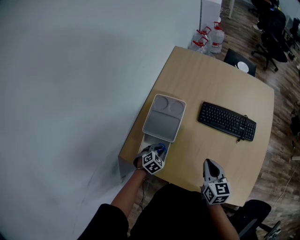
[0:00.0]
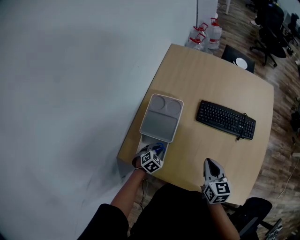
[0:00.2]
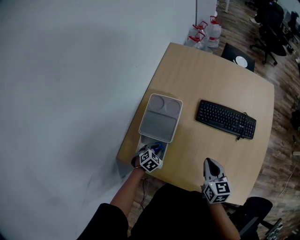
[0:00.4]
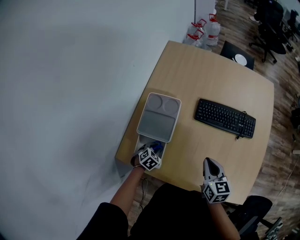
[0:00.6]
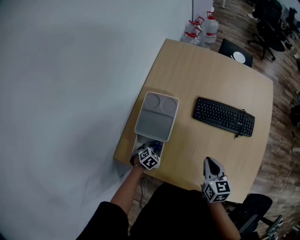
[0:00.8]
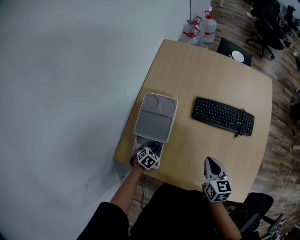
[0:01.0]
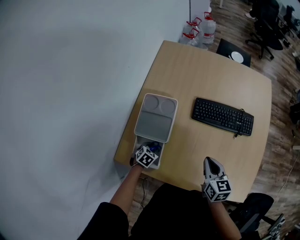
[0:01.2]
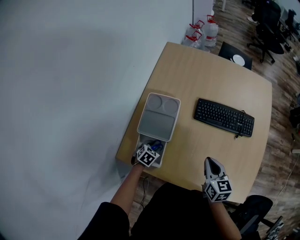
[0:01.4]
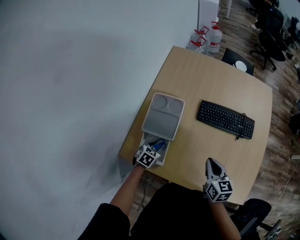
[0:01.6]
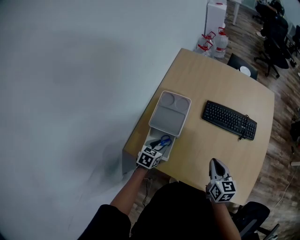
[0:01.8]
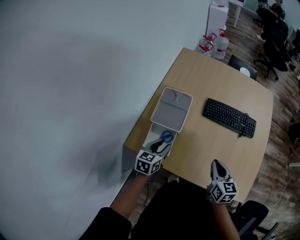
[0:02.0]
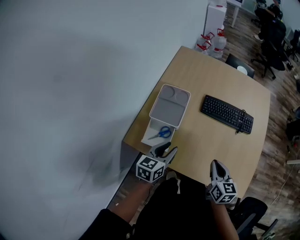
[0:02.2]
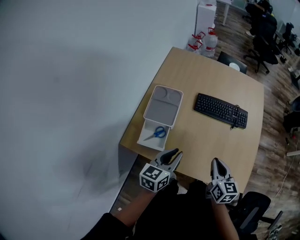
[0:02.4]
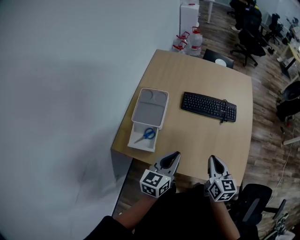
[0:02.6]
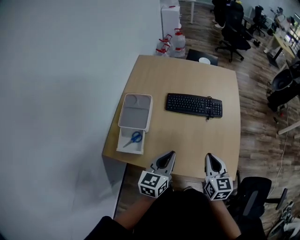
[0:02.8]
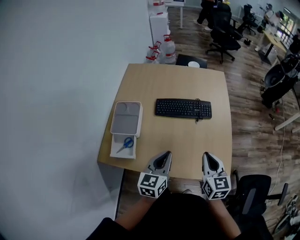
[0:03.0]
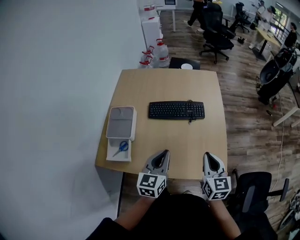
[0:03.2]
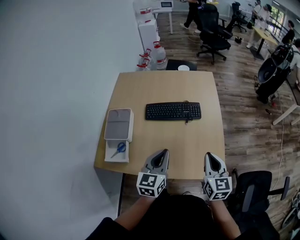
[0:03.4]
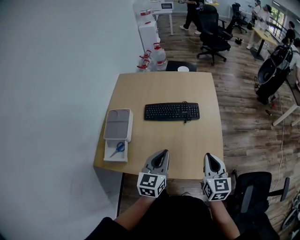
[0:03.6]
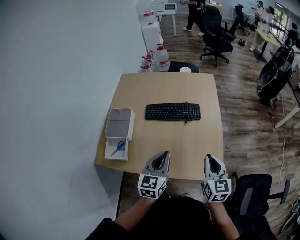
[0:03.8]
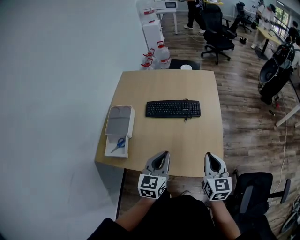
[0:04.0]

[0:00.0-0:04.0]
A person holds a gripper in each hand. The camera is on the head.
0:00.0 to 0:01.4: The grippers make only small movements.
0:01.4 to 0:02.6: The right gripper shifts some 15 cm backward, upward and to the right; the left gripper travels upward and to the right by some 35 cm, angles its fingers upward, by about 50 degrees, and closes up.
0:02.6 to 0:04.0: Both grippers move to the right, roughly 20 cm.

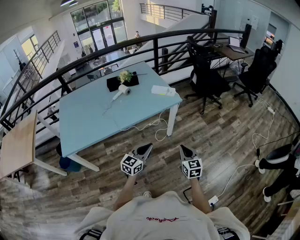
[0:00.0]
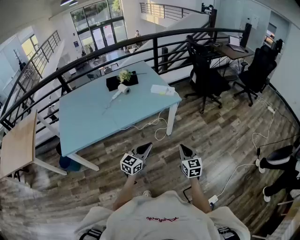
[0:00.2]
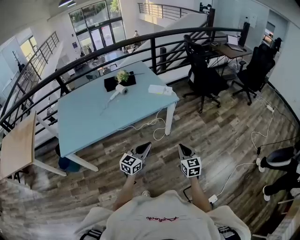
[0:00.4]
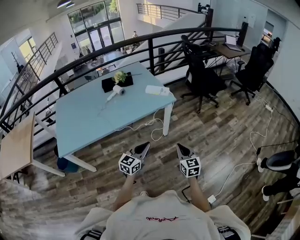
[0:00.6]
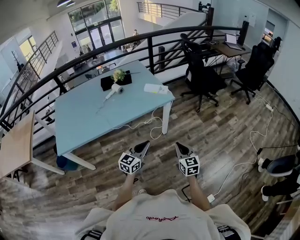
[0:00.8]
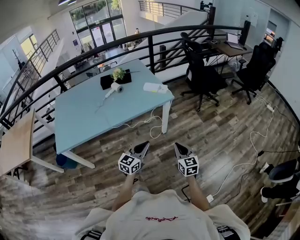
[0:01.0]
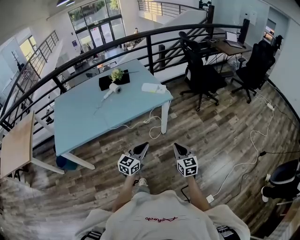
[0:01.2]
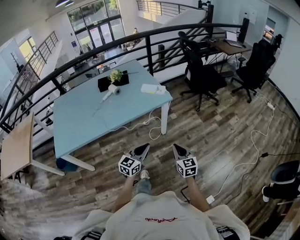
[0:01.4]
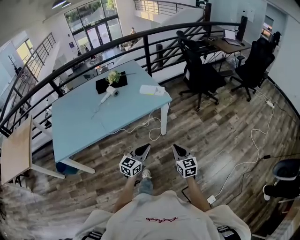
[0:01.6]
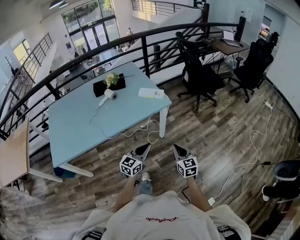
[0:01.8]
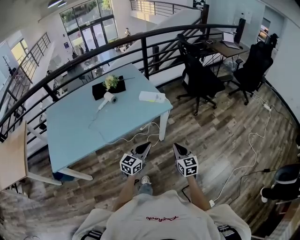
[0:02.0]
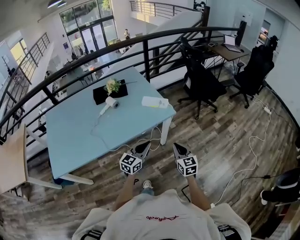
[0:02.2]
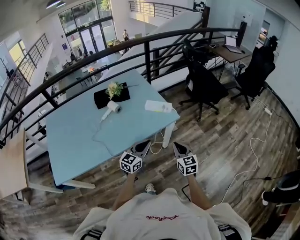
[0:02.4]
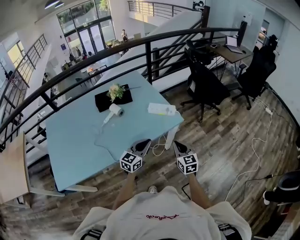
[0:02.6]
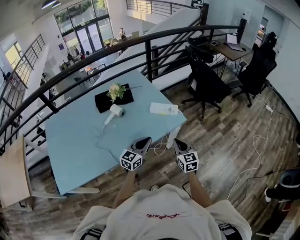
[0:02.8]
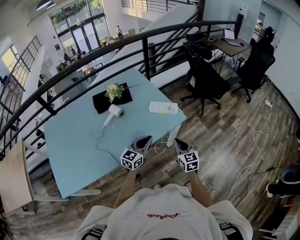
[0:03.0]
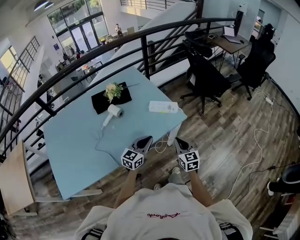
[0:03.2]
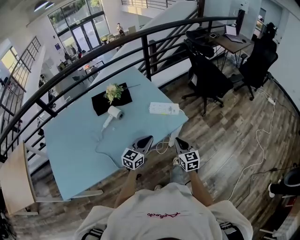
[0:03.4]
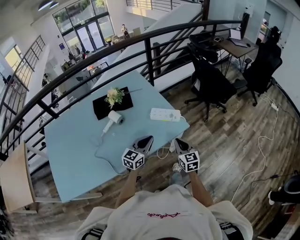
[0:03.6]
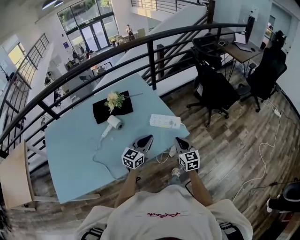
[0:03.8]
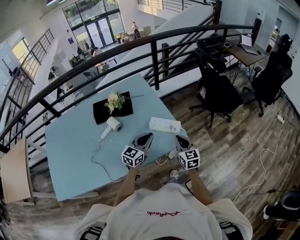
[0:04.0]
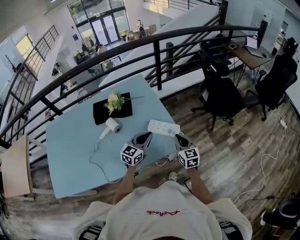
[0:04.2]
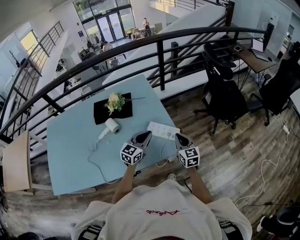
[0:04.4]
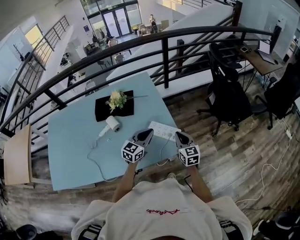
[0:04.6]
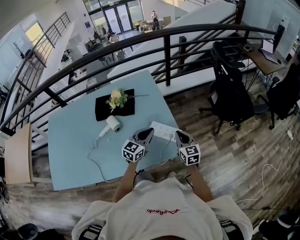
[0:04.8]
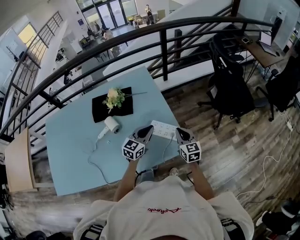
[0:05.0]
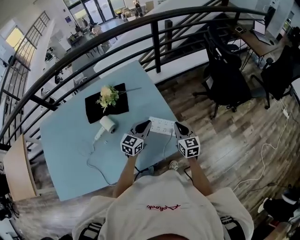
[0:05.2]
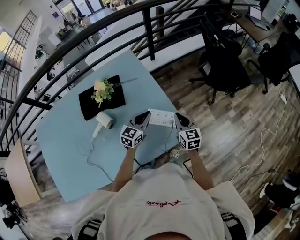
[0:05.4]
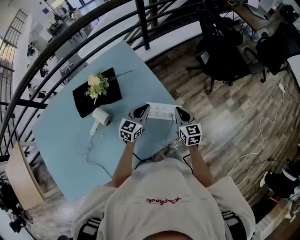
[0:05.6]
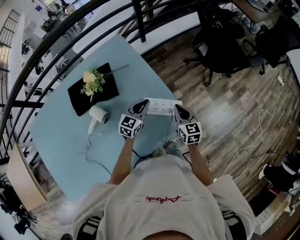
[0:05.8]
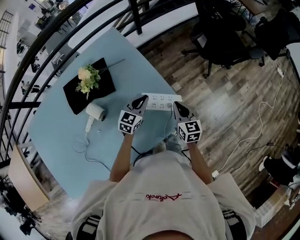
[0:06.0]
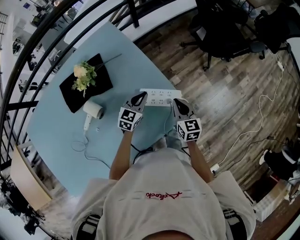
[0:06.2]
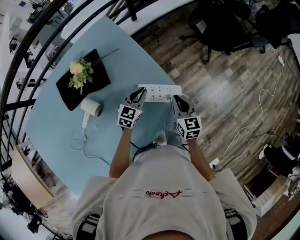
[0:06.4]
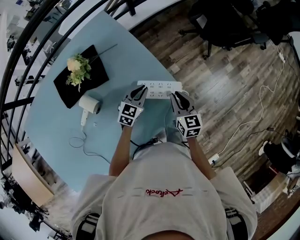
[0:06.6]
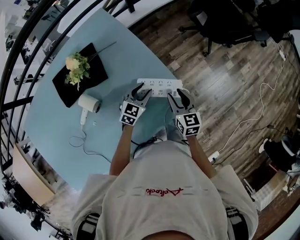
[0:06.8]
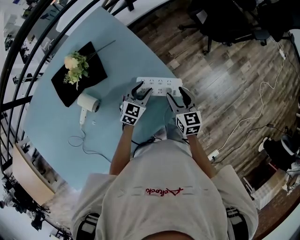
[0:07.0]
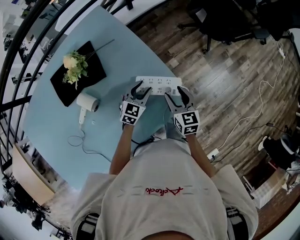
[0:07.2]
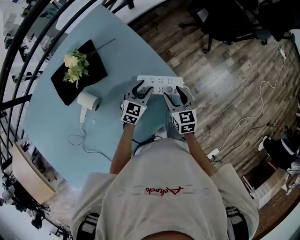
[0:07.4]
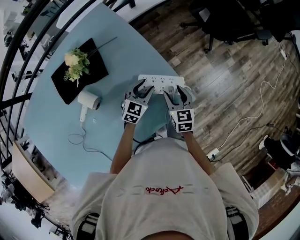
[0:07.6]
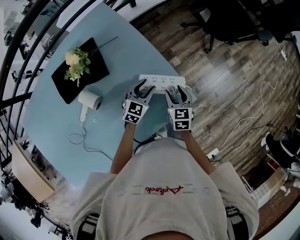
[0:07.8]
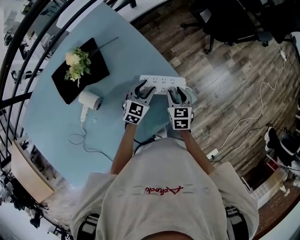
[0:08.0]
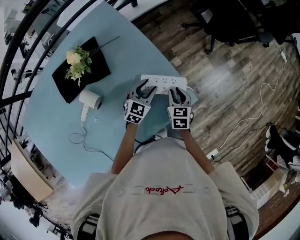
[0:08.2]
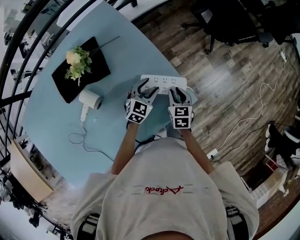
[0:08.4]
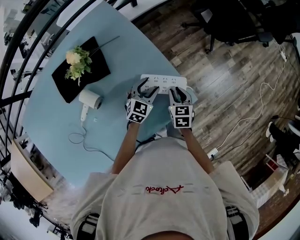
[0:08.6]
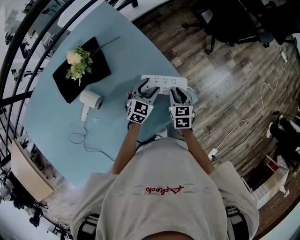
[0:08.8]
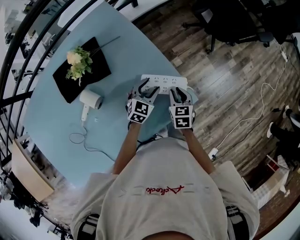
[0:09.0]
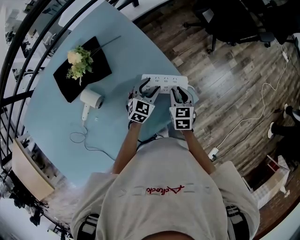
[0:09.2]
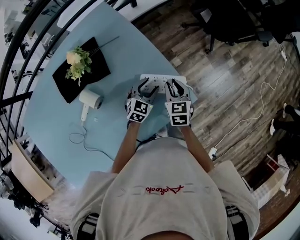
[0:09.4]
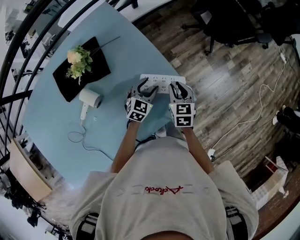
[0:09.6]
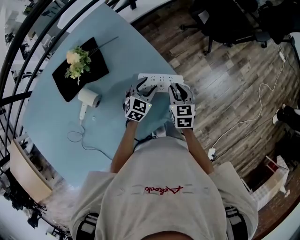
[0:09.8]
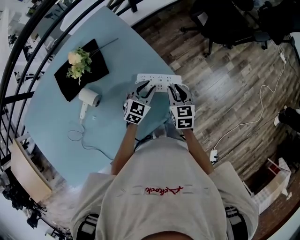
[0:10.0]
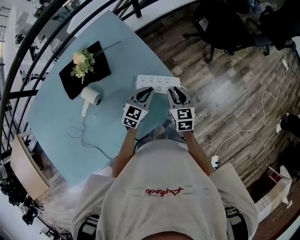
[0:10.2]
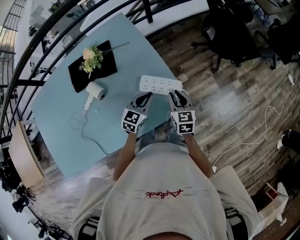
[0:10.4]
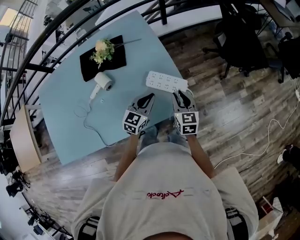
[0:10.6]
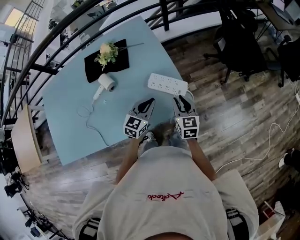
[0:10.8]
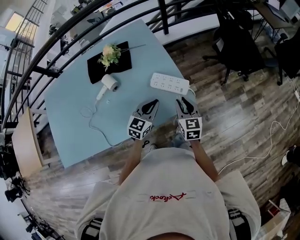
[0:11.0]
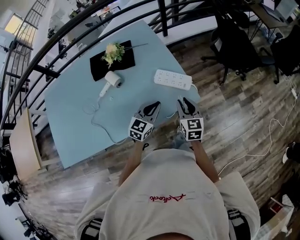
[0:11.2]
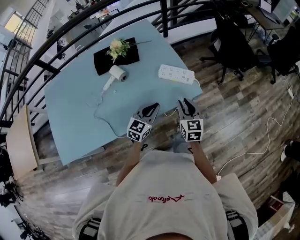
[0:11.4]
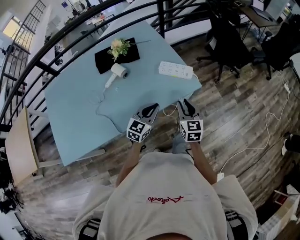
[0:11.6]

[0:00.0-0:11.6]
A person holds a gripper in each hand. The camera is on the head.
0:00.0 to 0:01.4: Both grippers travel together to the right, approximately 5 cm.
0:01.4 to 0:02.8: Both grippers travel together forward and to the left, roughly 30 cm.
0:02.8 to 0:04.4: Both grippers travel together forward, approximately 25 cm.
0:04.4 to 0:05.8: Both grippers move forward and downward, some 15 cm.
0:05.8 to 0:07.2: The right gripper opens up, while the left gripper travels downward by about 10 cm, and opens its fingers.
0:07.2 to 0:08.8: The right gripper travels downward by some 5 cm, and closes up.
0:08.8 to 0:10.2: Both grippers move upward, about 5 cm. The left gripper closes up.
0:10.2 to 0:11.6: The grippers both shift backward by about 25 cm.

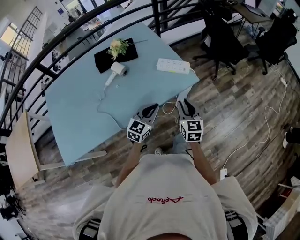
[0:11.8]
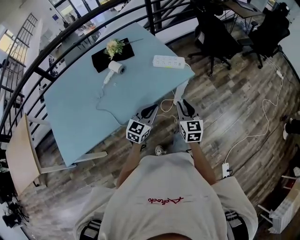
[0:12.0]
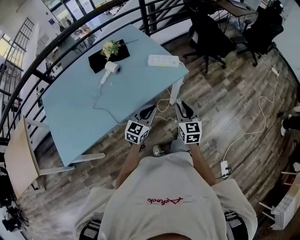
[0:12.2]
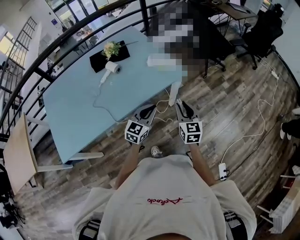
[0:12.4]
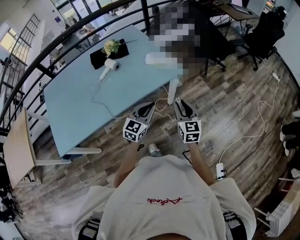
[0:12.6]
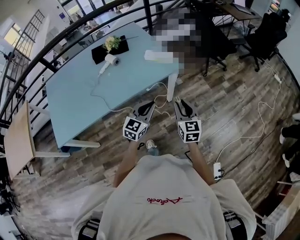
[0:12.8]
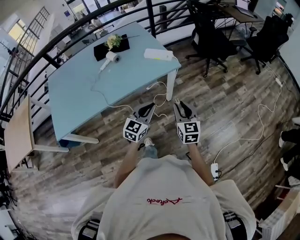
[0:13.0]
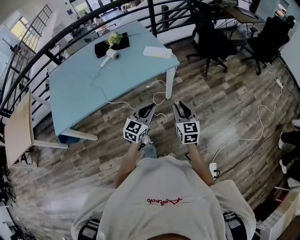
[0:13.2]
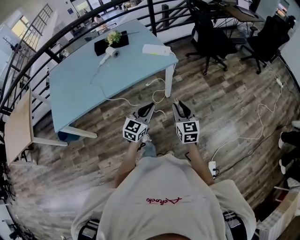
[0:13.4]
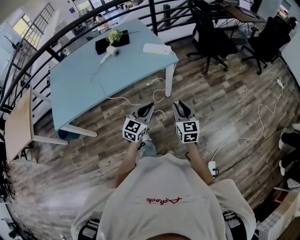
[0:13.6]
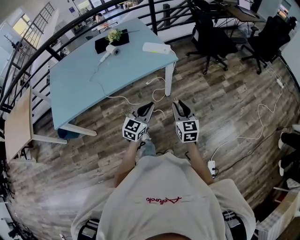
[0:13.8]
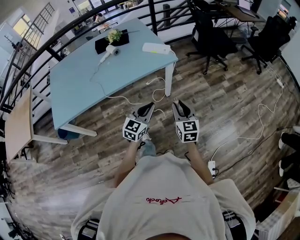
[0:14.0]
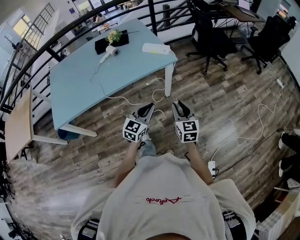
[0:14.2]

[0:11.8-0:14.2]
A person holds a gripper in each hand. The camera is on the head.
0:11.8 to 0:13.0: The grippers both shift backward and to the right by approximately 20 cm.
0:13.0 to 0:14.2: The grippers both shift backward by roughly 5 cm.

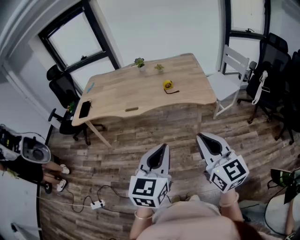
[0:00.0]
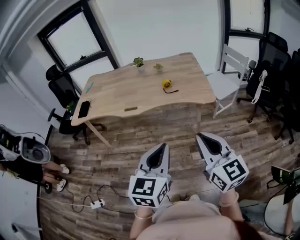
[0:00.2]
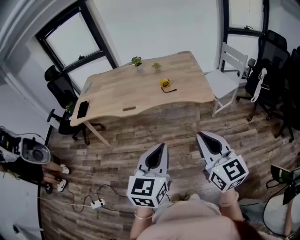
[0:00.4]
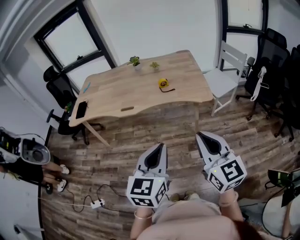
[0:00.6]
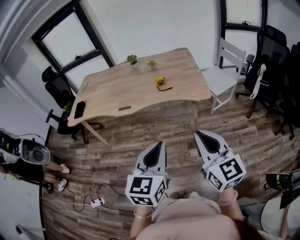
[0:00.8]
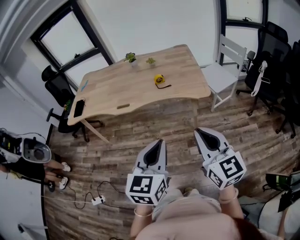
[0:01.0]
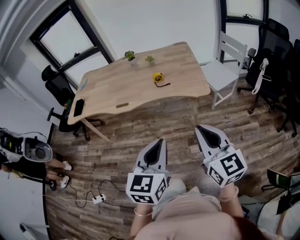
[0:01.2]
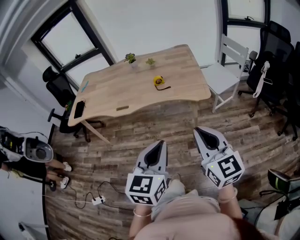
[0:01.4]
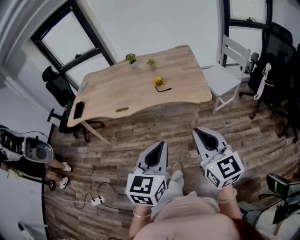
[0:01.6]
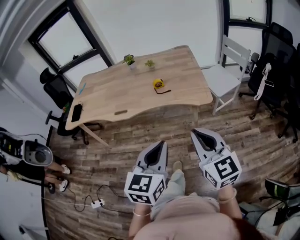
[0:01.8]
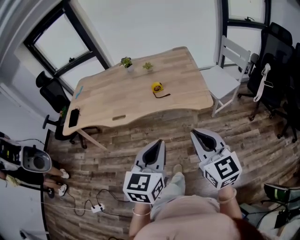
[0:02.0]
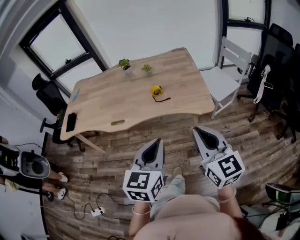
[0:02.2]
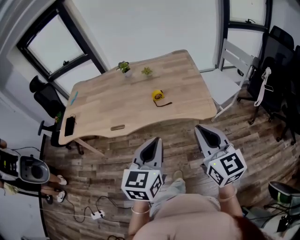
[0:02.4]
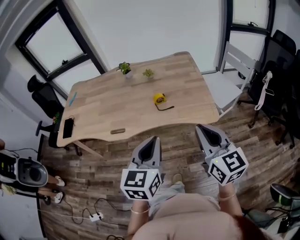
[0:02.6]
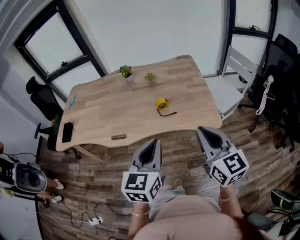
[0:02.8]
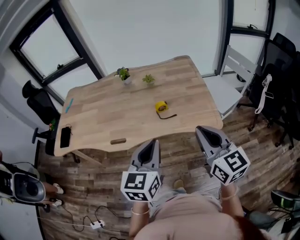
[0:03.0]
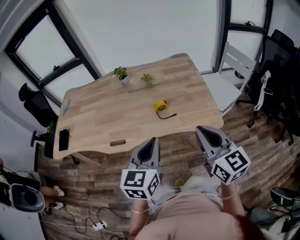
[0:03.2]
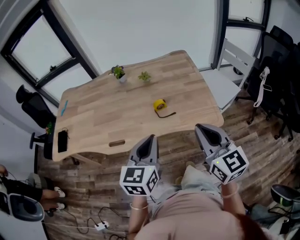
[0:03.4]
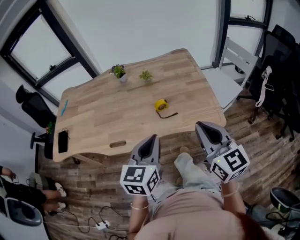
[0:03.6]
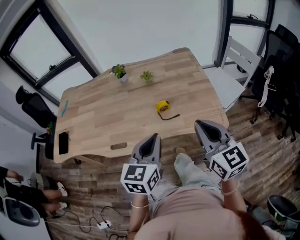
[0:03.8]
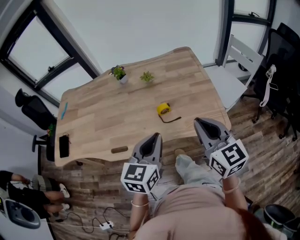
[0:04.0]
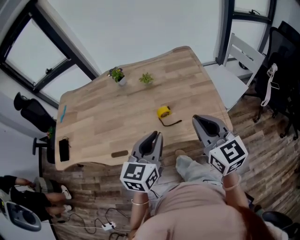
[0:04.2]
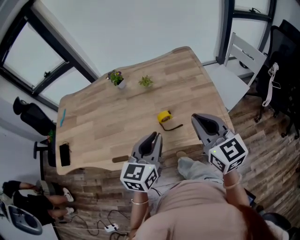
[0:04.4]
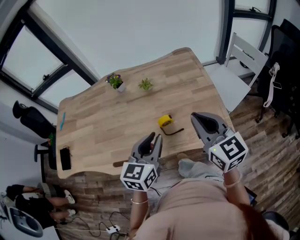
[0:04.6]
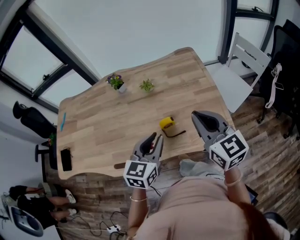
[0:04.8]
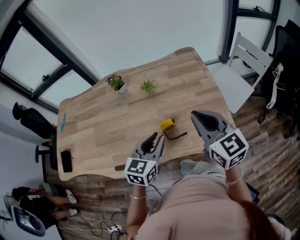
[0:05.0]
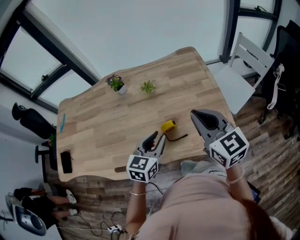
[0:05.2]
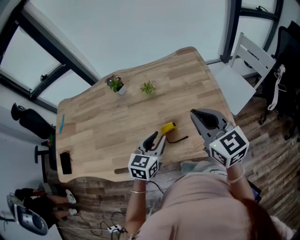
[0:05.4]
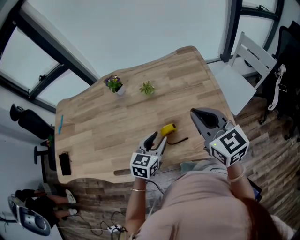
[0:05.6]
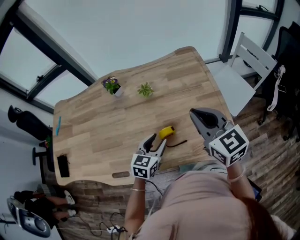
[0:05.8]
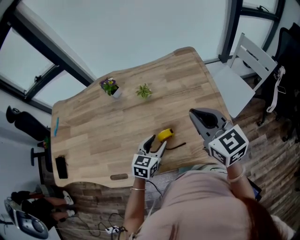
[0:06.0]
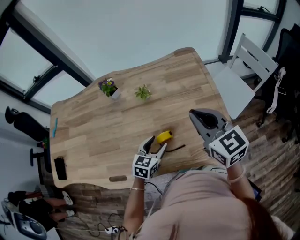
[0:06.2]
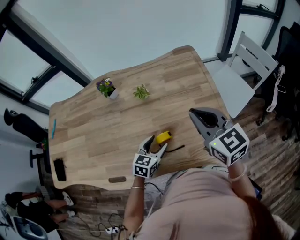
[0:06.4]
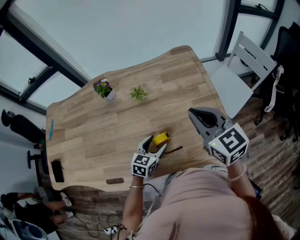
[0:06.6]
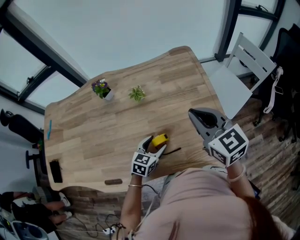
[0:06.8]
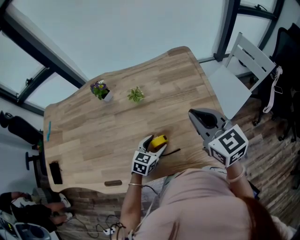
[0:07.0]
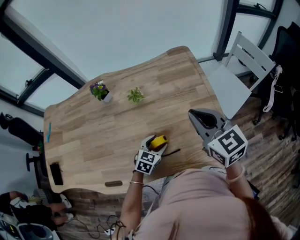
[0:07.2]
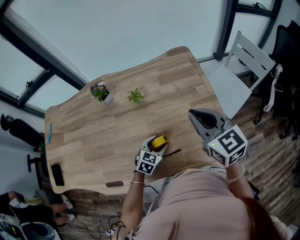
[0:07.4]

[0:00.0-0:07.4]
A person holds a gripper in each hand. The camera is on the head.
0:00.0 to 0:01.4: The left gripper travels to the right by roughly 10 cm; the right gripper goes approximately 10 cm to the right and forward.
0:01.4 to 0:03.0: The grippers both shift forward by roughly 30 cm.
0:03.0 to 0:04.4: Both grippers move forward, approximately 15 cm.
0:04.4 to 0:06.0: The left gripper heads downward and forward, covering about 25 cm, and opens up. The right gripper heads forward, covering about 15 cm.
0:06.0 to 0:07.4: The left gripper moves downward, approximately 10 cm; the right gripper ends up some 5 cm from where it was.
